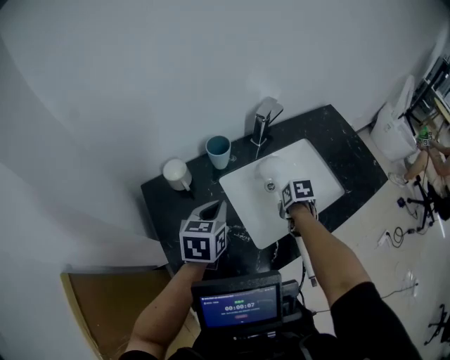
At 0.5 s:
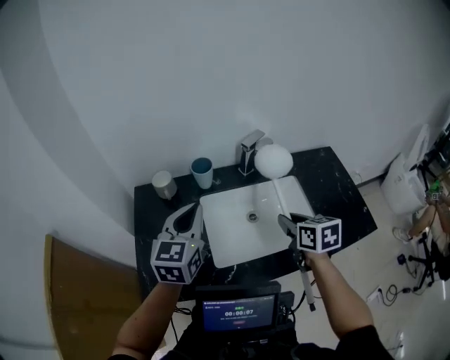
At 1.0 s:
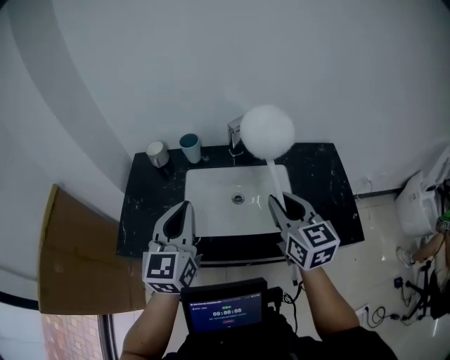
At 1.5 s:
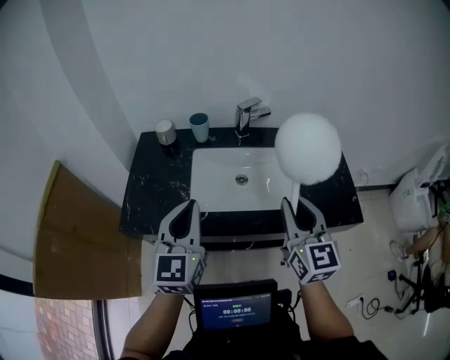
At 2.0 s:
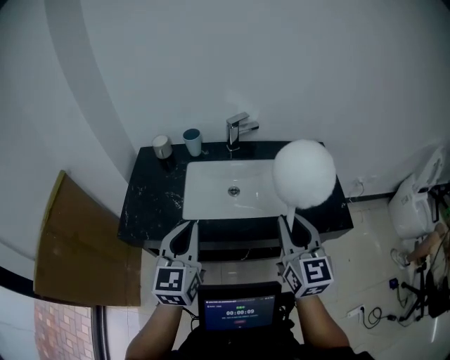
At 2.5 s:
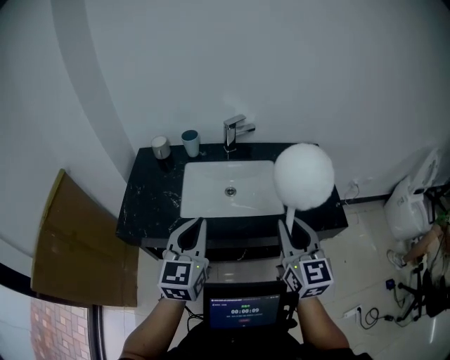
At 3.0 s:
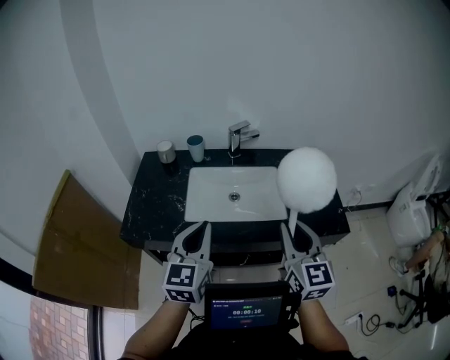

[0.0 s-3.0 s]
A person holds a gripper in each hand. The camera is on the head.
0.0 to 1.5 s: The right gripper heads upward, backward and to the right, covering some 40 cm, and tips its fingers upward by roughly 70 degrees; the left gripper goes some 35 cm backward, to the right and upward, and tilts its fingers roughly 30 degrees upward.
1.5 to 3.0 s: The right gripper moves backward and to the right, approximately 10 cm; the left gripper travels to the right and backward by roughly 10 cm.

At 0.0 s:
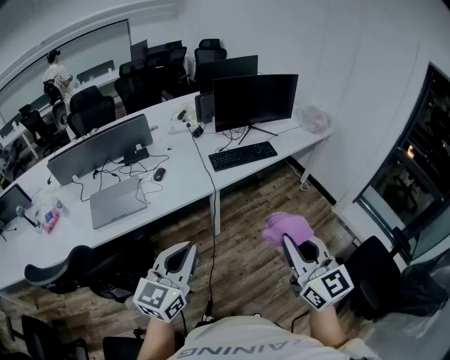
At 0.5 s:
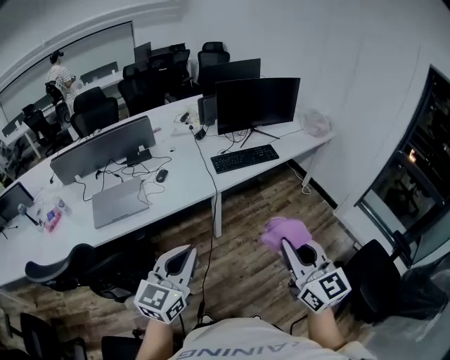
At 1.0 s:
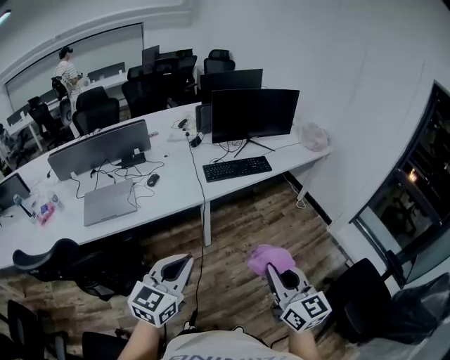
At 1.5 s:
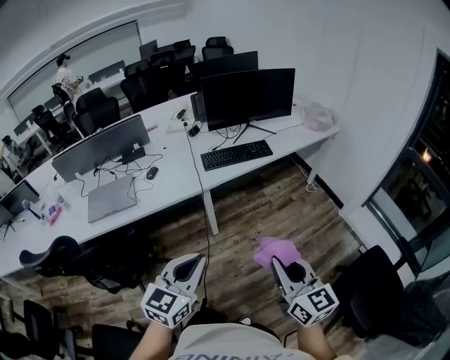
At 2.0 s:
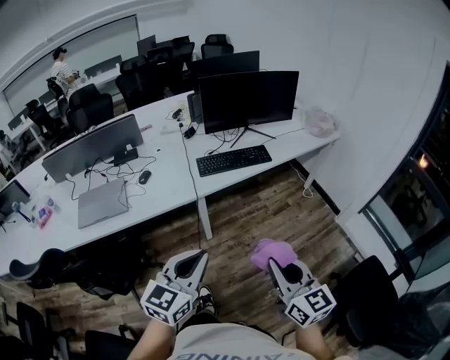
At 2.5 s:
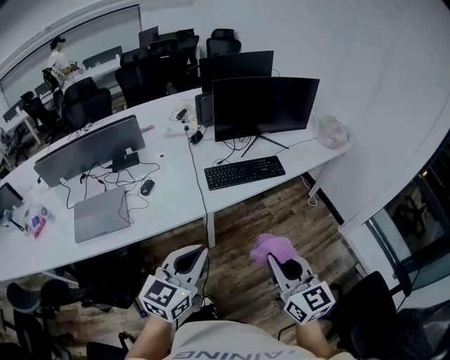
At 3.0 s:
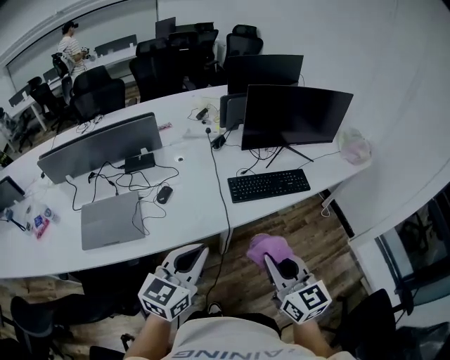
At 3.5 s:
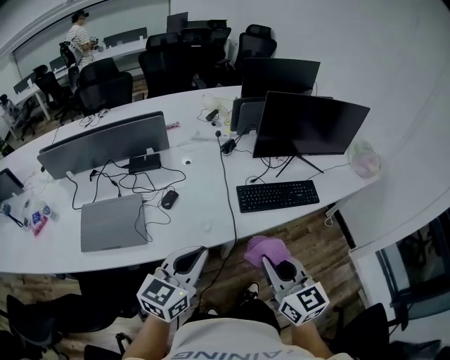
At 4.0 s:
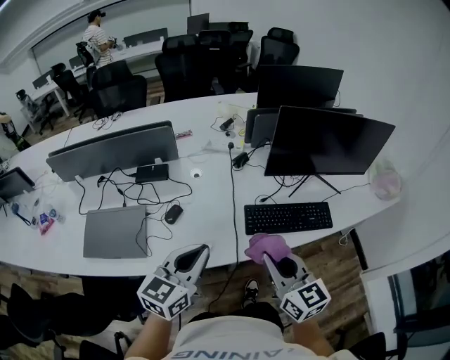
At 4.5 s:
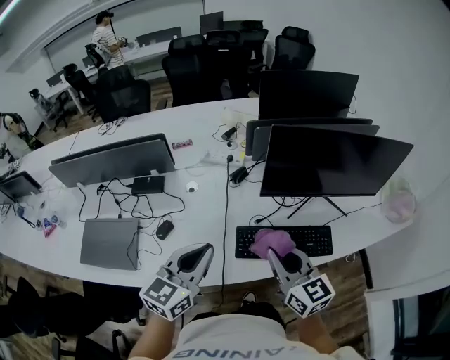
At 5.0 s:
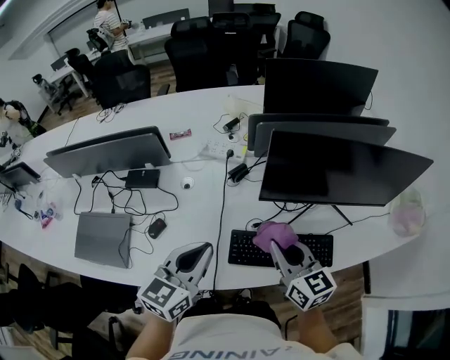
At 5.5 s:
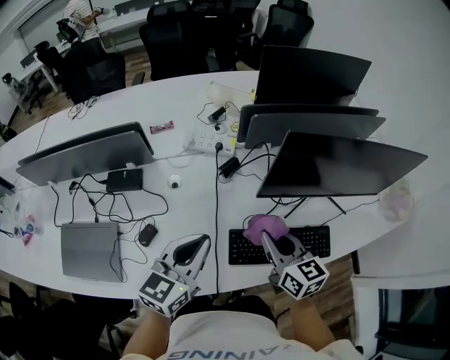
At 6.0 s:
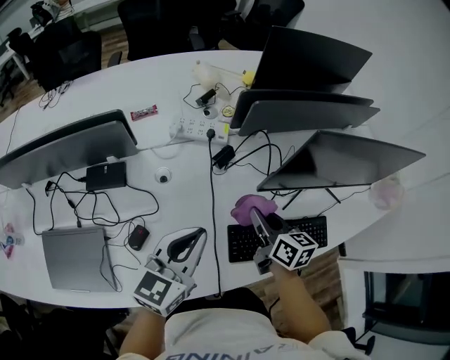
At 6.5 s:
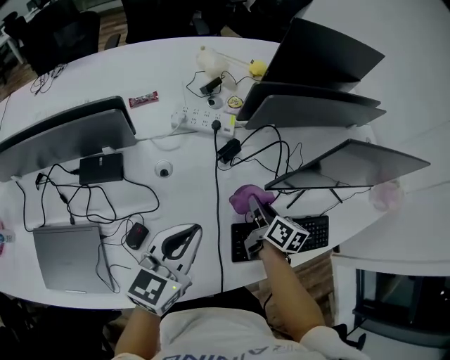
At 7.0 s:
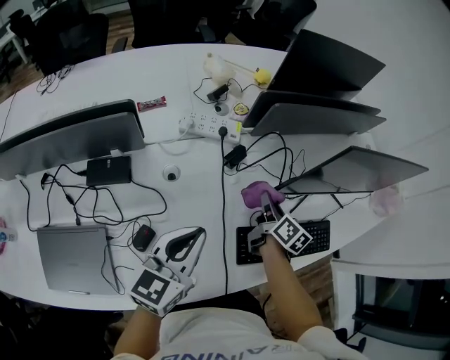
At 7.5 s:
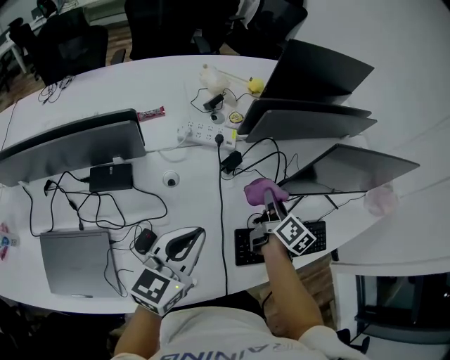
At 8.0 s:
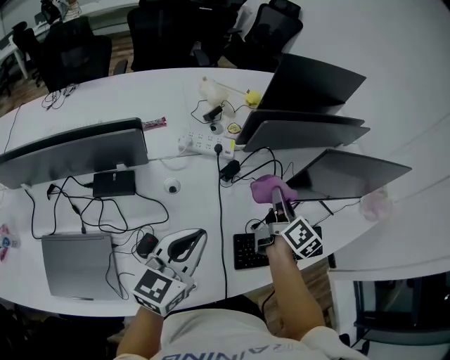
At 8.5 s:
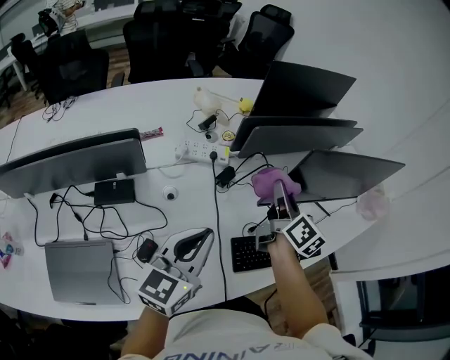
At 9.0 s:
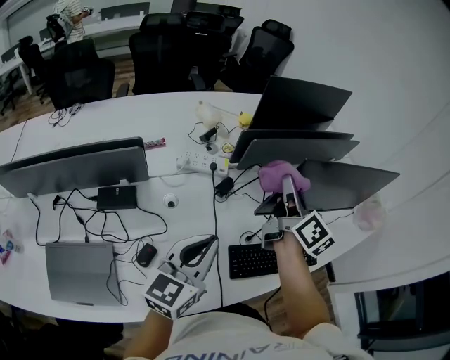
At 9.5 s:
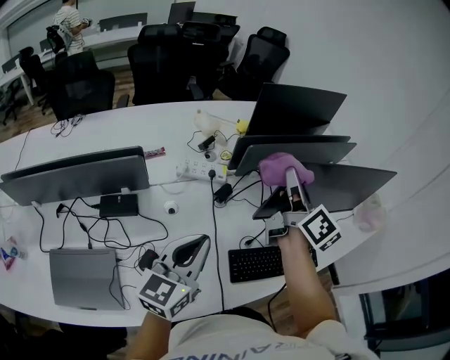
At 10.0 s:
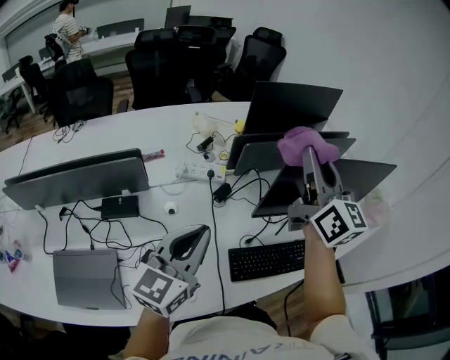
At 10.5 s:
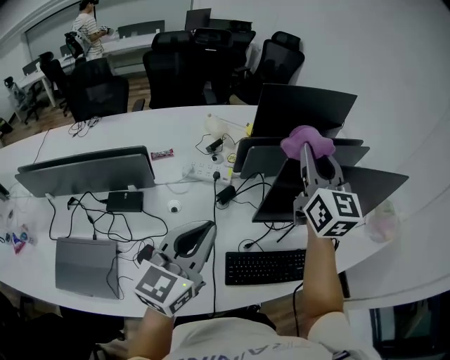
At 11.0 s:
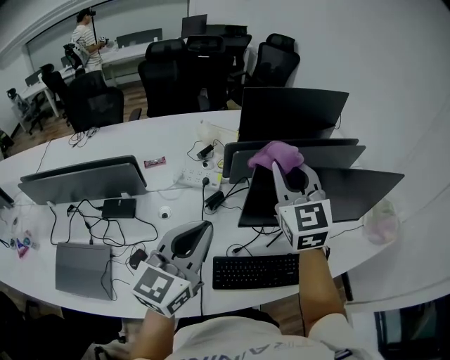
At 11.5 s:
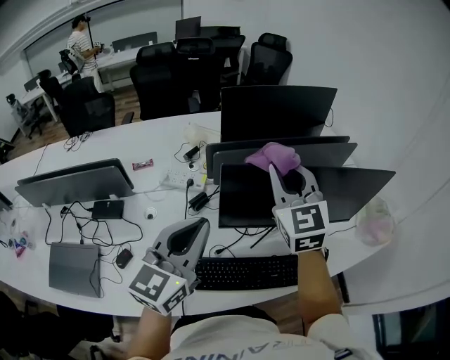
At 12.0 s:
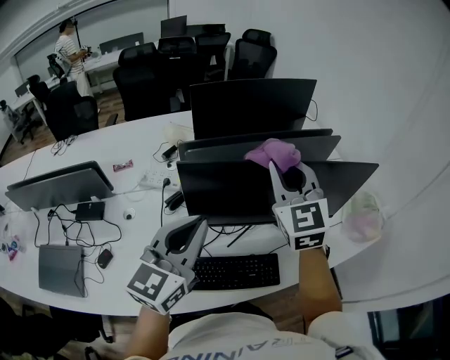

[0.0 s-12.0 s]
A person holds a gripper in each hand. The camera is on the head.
0.0 to 2.0 s: The left gripper travels to the right and forward by approximately 15 cm. Meanwhile the right gripper heads to the right, downward and forward, covering roughly 15 cm.
2.0 to 4.0 s: Both grippers travel together forward and to the left, some 40 cm.
4.0 to 6.0 s: The left gripper goes roughly 25 cm forward, while the right gripper goes about 35 cm forward and downward, and swivels some 30 degrees.
6.0 to 8.0 s: The right gripper moves upward and forward, some 10 cm, and rotates roughly 30 degrees. The left gripper changes place by roughly 5 cm.
8.0 to 10.0 s: The right gripper goes roughly 25 cm upward, and rotates roughly 40 degrees; the left gripper goes approximately 10 cm upward.
10.0 to 12.0 s: Both grippers move to the right, approximately 20 cm. The right gripper swivels approximately 40 degrees.

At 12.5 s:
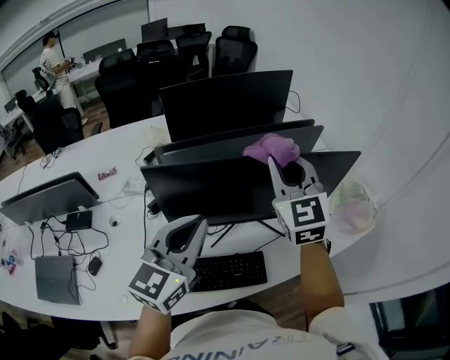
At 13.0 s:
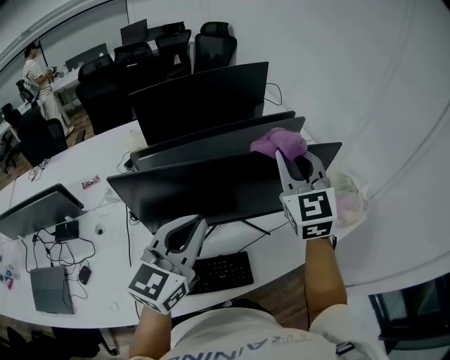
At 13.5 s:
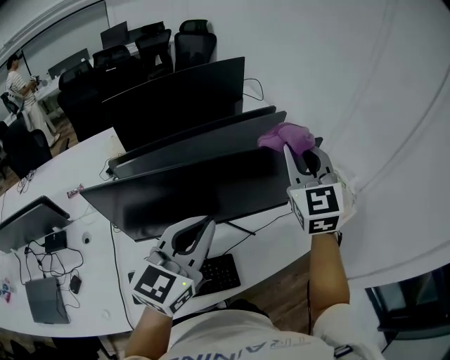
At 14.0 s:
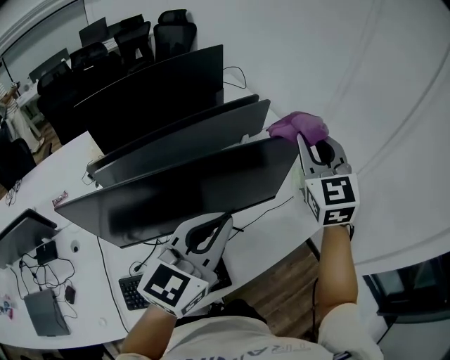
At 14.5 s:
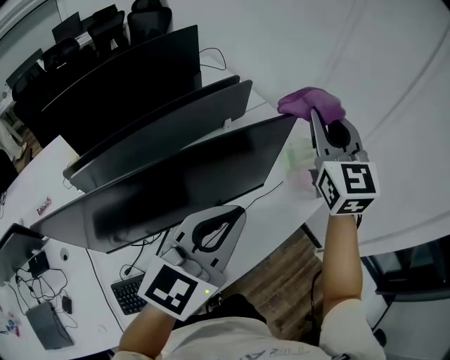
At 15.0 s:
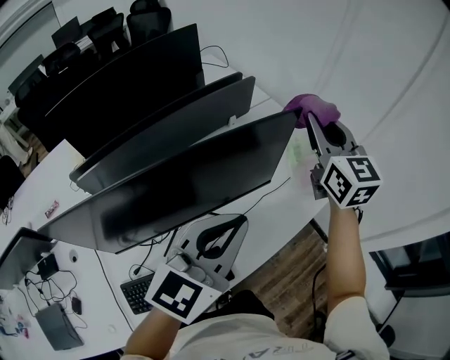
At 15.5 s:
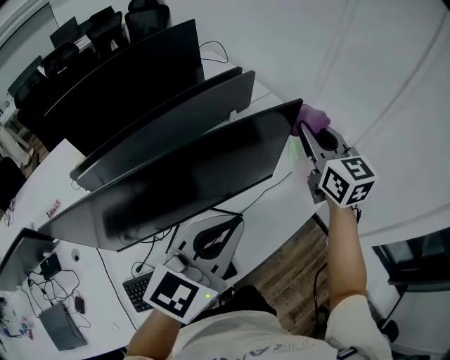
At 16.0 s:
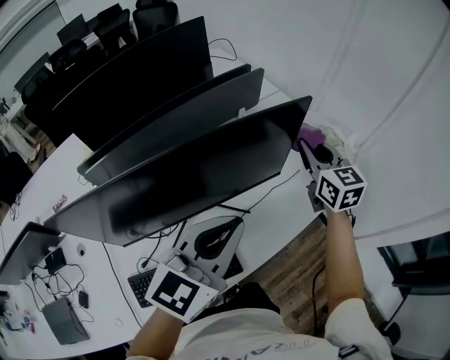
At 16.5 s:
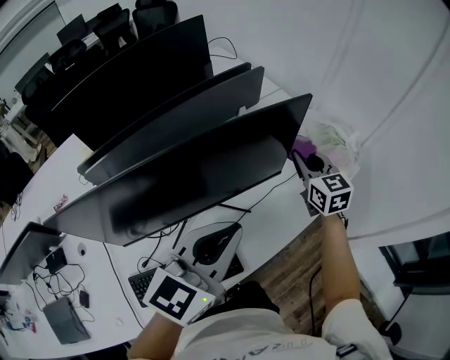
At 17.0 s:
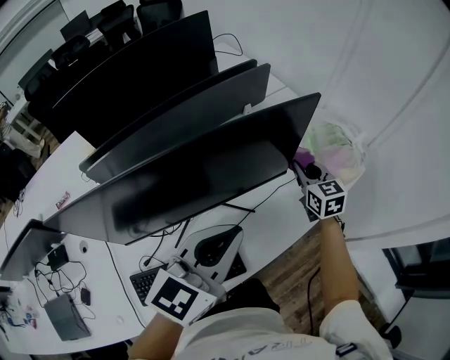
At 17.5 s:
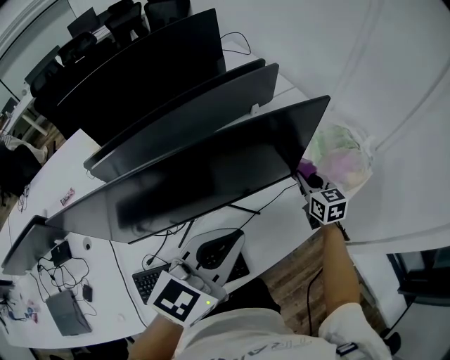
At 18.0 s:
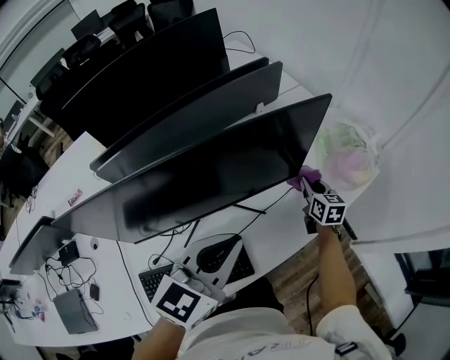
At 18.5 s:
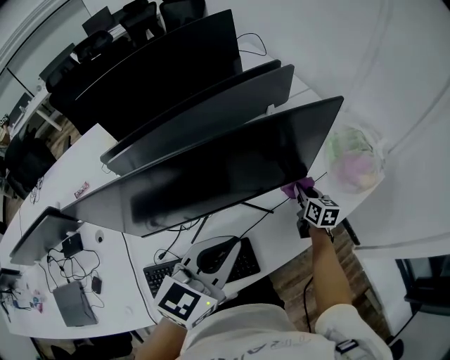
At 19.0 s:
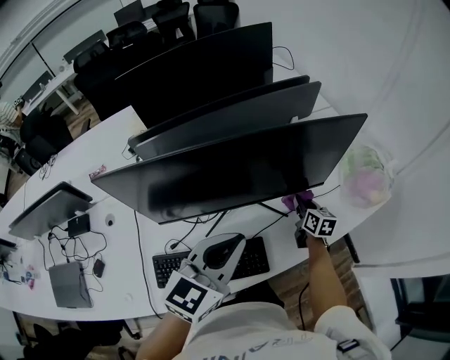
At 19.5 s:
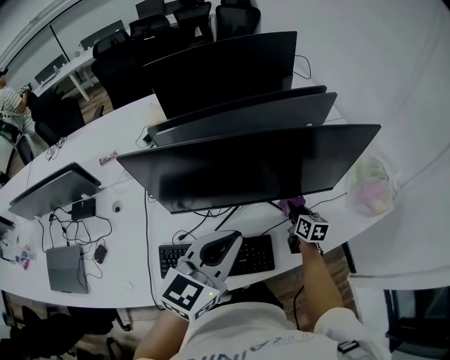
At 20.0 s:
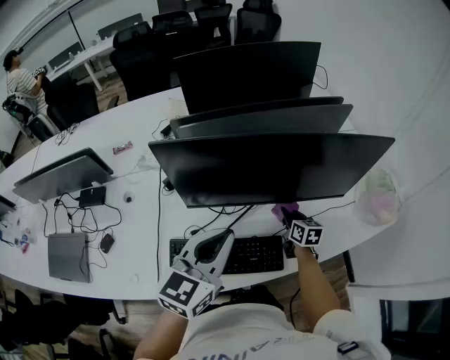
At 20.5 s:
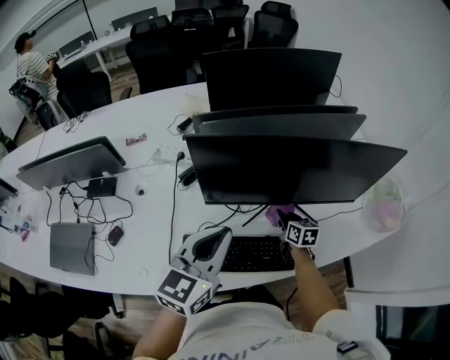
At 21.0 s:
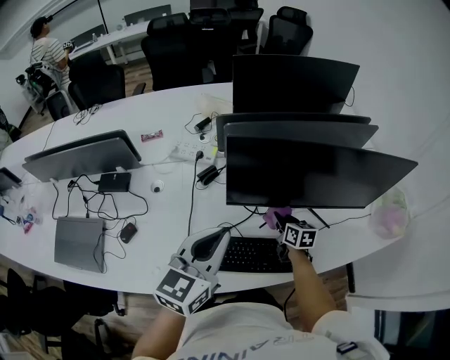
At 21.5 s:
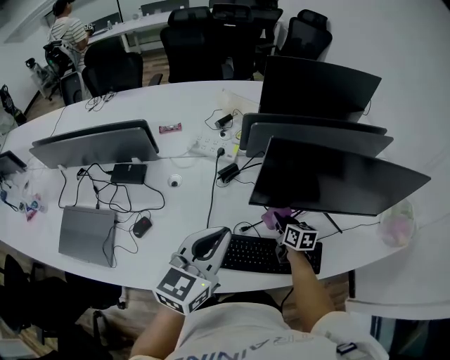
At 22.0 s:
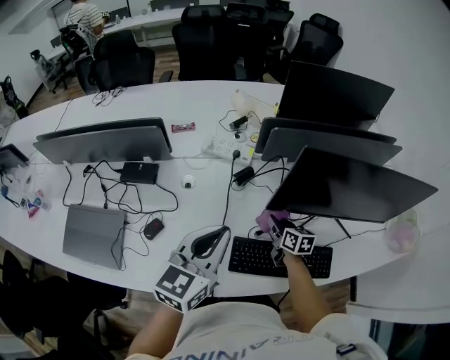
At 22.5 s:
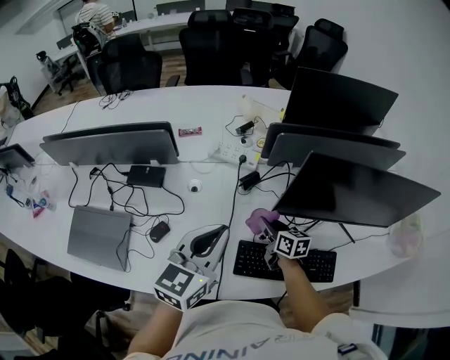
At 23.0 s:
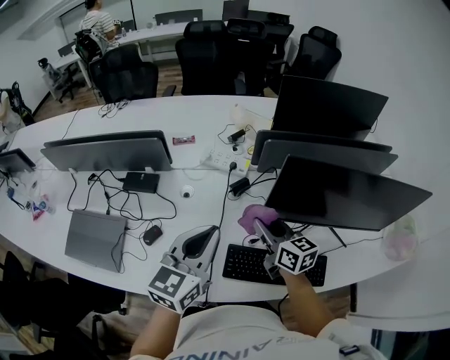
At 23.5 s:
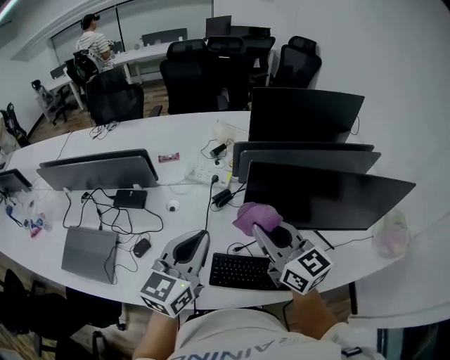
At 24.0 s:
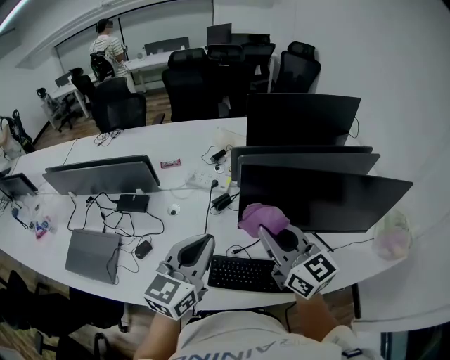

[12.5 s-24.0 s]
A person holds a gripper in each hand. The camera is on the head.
12.5 to 14.5 s: The right gripper ends up some 30 cm from where it was, and swivels approximately 30 degrees, while the left gripper changes place by roughly 25 cm, and rotates about 30 degrees.
14.5 to 16.5 s: The right gripper heads downward, covering about 25 cm, and rotates approximately 30 degrees, while the left gripper heads downward, covering roughly 5 cm.
16.5 to 18.5 s: The right gripper shifts roughly 20 cm downward, and turns by approximately 30 degrees; the left gripper heads downward, covering roughly 5 cm.
18.5 to 20.0 s: The right gripper heads to the left, covering roughly 20 cm. The left gripper shifts some 15 cm to the left and backward, and rotates about 20 degrees.
20.0 to 22.0 s: The two grippers go some 30 cm to the left.
22.0 to 24.0 s: The left gripper travels to the right and upward by roughly 10 cm. Meanwhile the right gripper is displaced upward by roughly 30 cm, and angles its fingers upward, by roughly 30 degrees.
